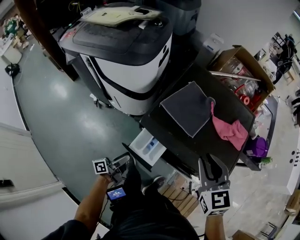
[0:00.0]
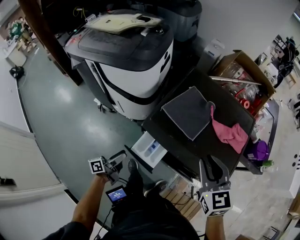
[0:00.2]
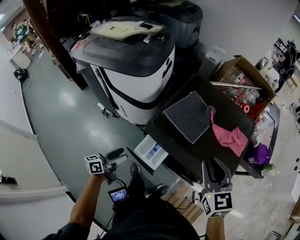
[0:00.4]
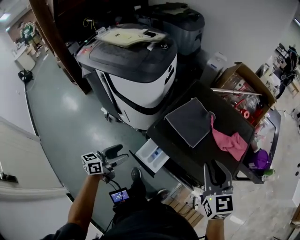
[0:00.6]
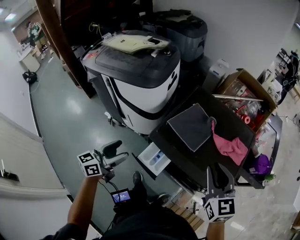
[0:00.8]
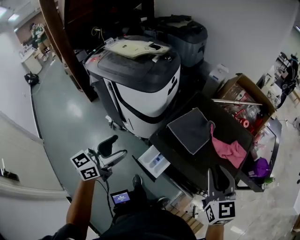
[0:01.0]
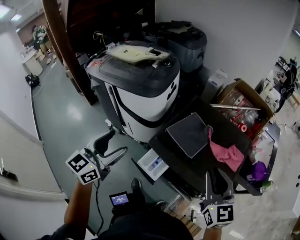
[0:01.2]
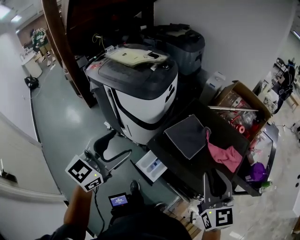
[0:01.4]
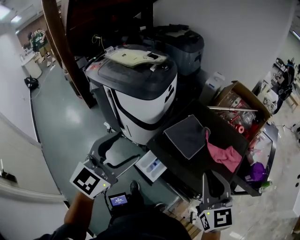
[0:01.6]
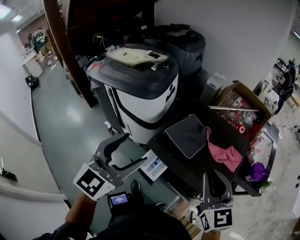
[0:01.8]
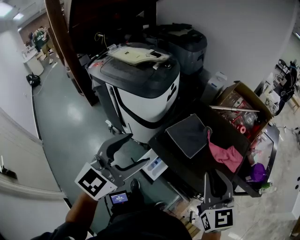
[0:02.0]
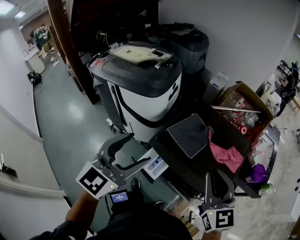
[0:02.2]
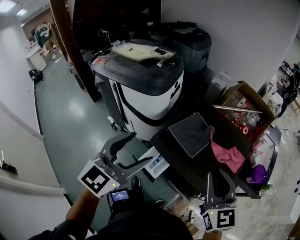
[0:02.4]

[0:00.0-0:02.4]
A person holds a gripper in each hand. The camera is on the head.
0:00.0 to 0:01.2: The left gripper goes roughly 40 cm upward, and rolls clockwise, seen from behind, by some 70 degrees; the right gripper is displaced upward by approximately 10 cm.
0:01.2 to 0:02.4: The left gripper moves to the right and upward, some 10 cm.

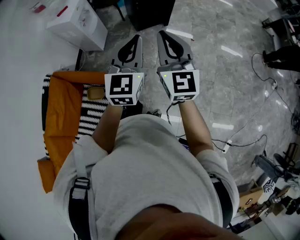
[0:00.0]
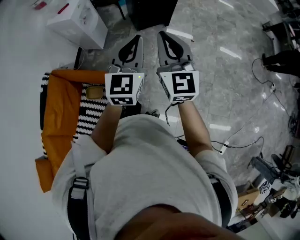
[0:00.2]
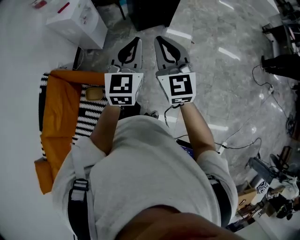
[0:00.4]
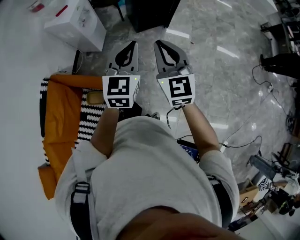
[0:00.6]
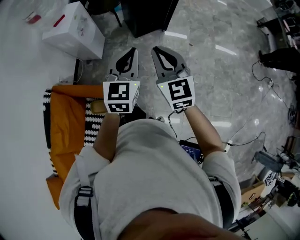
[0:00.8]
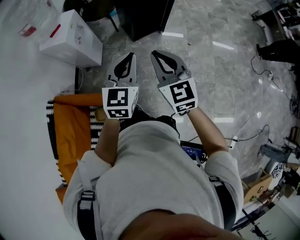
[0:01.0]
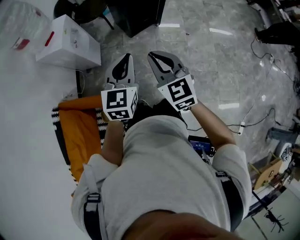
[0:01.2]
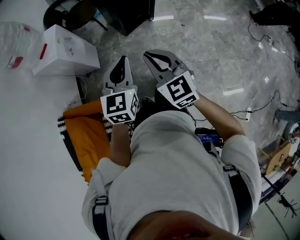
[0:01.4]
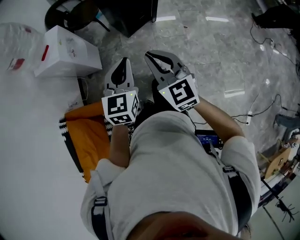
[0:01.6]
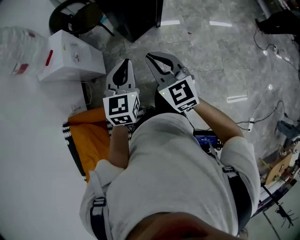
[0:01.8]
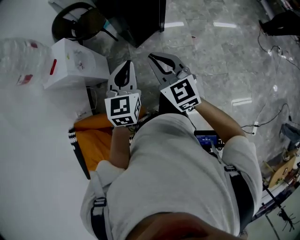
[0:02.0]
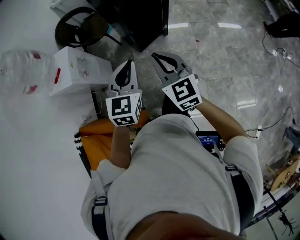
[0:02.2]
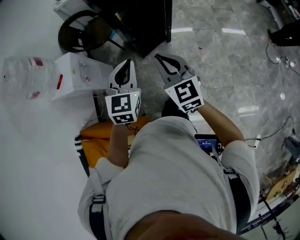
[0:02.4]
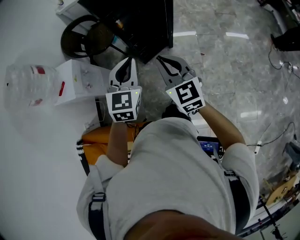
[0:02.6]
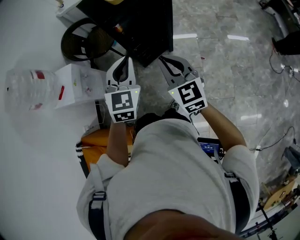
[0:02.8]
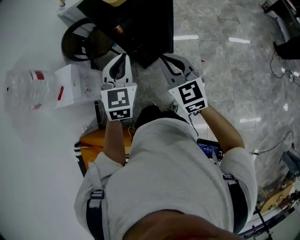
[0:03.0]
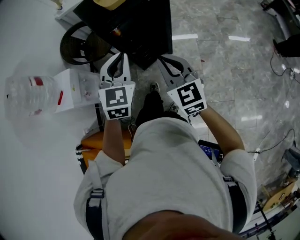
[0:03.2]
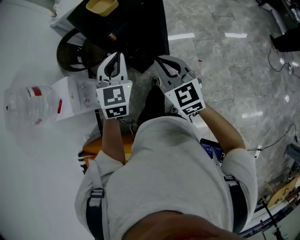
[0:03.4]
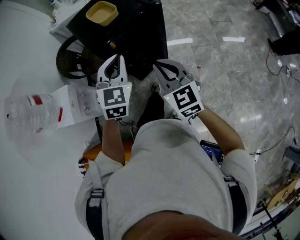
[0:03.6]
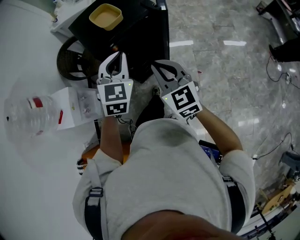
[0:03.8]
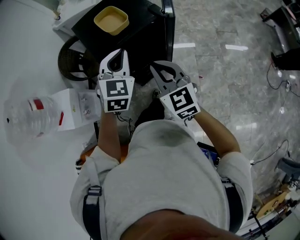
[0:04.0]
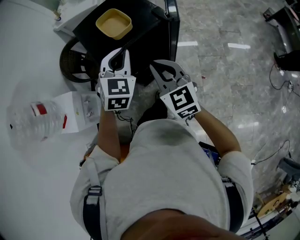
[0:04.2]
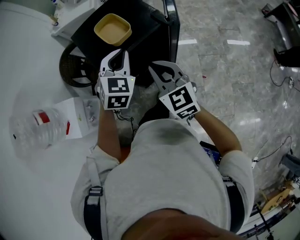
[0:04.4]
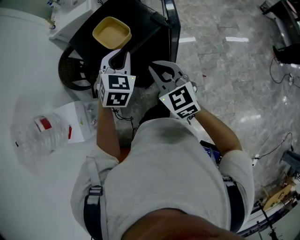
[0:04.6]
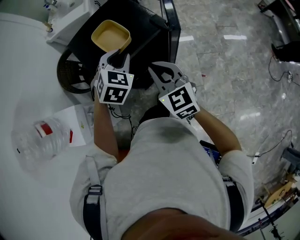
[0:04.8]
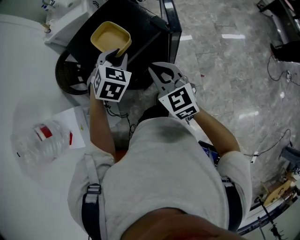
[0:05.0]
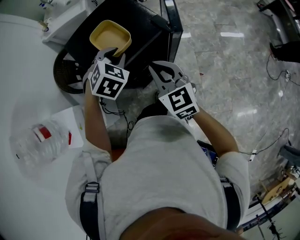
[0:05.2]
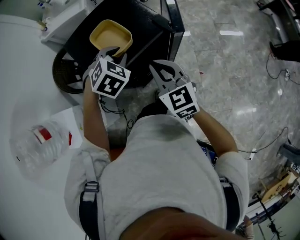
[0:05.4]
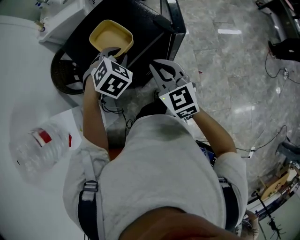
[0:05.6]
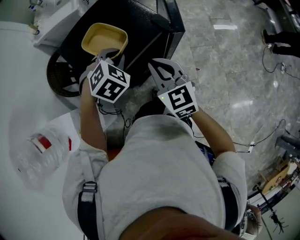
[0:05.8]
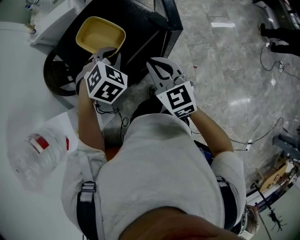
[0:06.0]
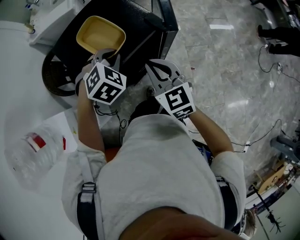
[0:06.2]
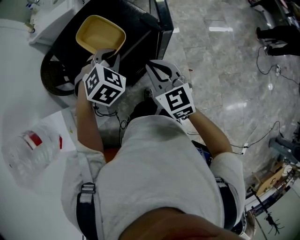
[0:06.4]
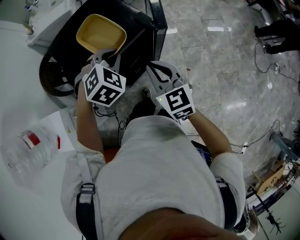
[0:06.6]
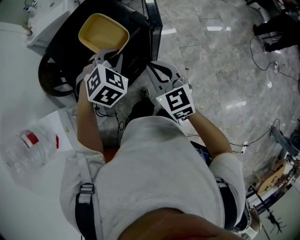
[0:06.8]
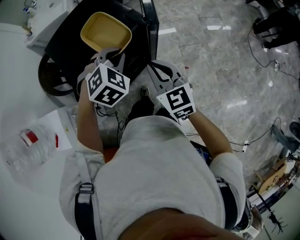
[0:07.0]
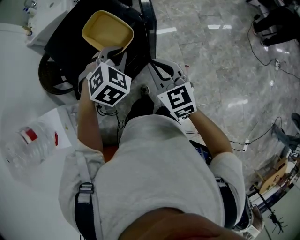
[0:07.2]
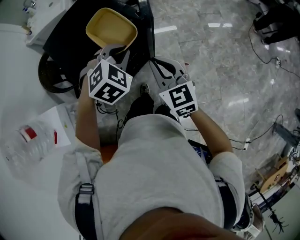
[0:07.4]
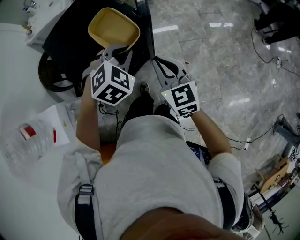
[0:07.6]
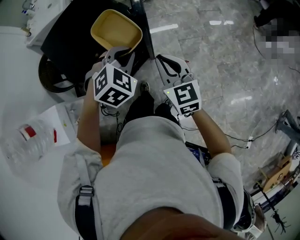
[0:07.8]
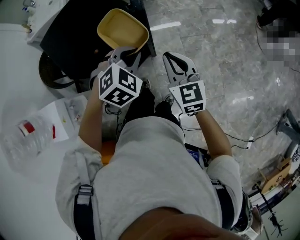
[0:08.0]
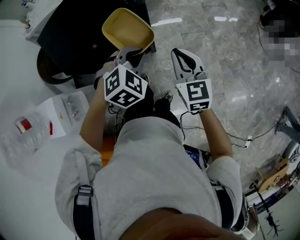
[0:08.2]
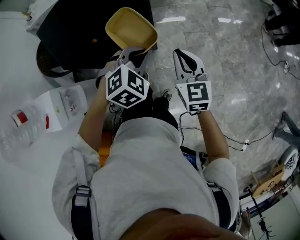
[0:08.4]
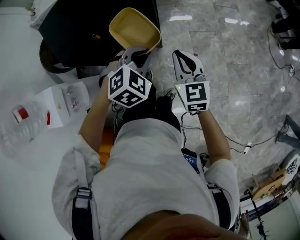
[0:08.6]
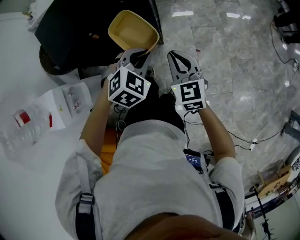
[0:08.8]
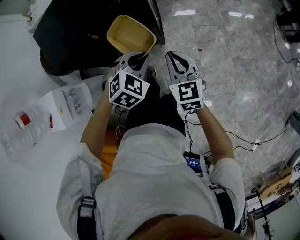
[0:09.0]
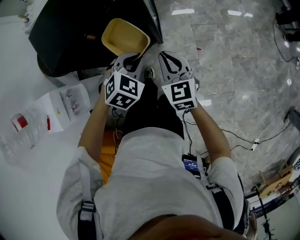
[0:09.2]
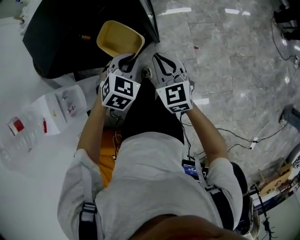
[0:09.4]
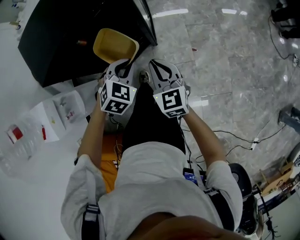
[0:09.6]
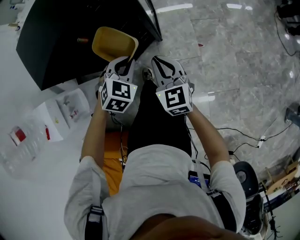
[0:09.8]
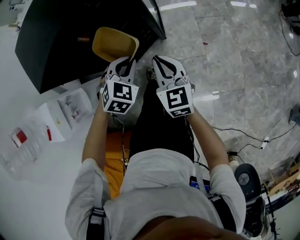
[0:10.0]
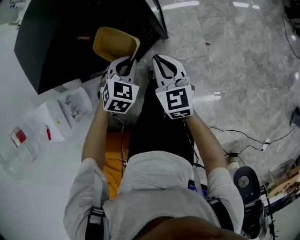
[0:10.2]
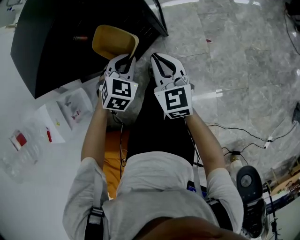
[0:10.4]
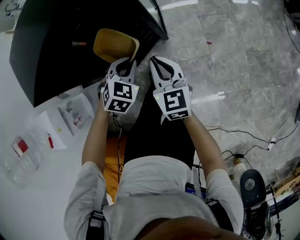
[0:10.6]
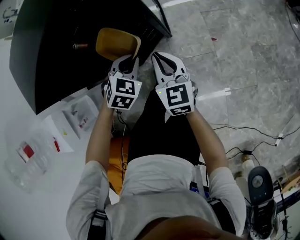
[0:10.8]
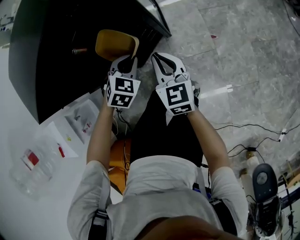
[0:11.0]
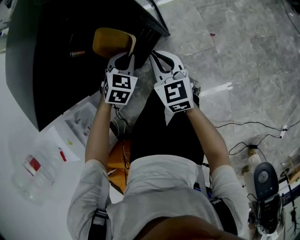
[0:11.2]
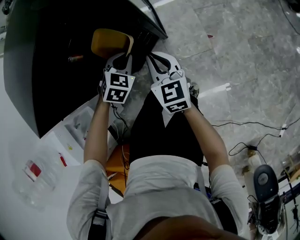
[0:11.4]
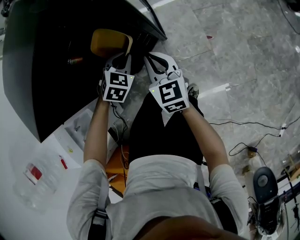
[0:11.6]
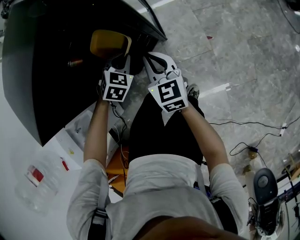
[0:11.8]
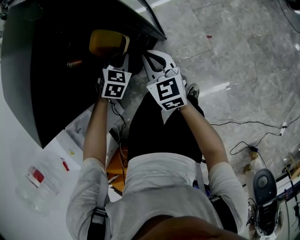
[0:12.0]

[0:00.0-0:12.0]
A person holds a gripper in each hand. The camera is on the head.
0:00.0 to 0:01.6: The two grippers go about 20 cm forward, to the left and downward.
0:01.6 to 0:03.0: Both grippers move forward and to the right, about 35 cm. The left gripper turns by some 20 degrees.
0:03.0 to 0:04.4: Both grippers move forward, some 25 cm.
0:04.4 to 0:06.0: The right gripper moves forward, approximately 10 cm; the left gripper travels forward and downward by some 10 cm, and rotates approximately 30 degrees.
0:06.0 to 0:07.6: Both grippers travel together to the right and backward, approximately 15 cm.
0:07.6 to 0:09.0: The two grippers go approximately 15 cm downward and to the right.
0:09.0 to 0:10.4: The grippers both shift downward by roughly 15 cm.
0:10.4 to 0:12.0: The left gripper moves downward and forward, roughly 15 cm, while the right gripper shifts approximately 10 cm forward and downward.

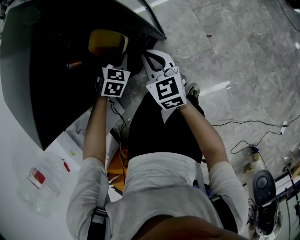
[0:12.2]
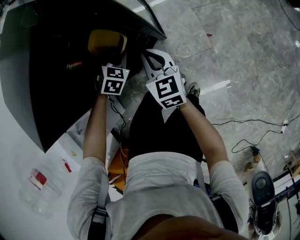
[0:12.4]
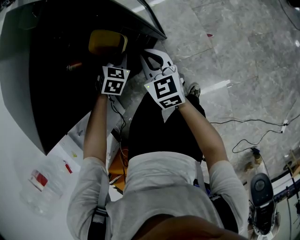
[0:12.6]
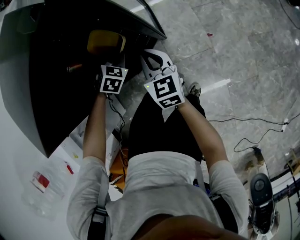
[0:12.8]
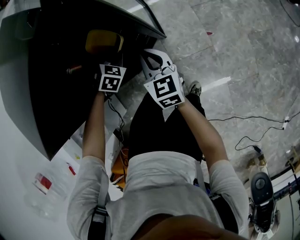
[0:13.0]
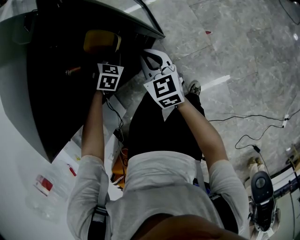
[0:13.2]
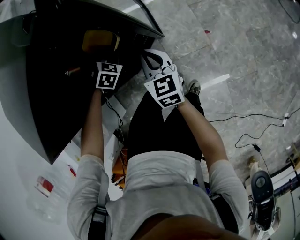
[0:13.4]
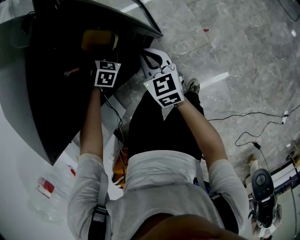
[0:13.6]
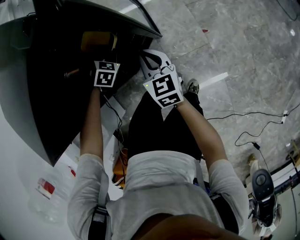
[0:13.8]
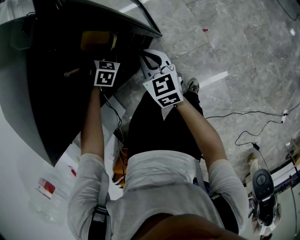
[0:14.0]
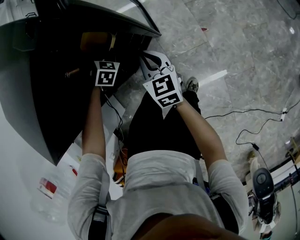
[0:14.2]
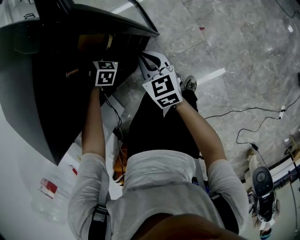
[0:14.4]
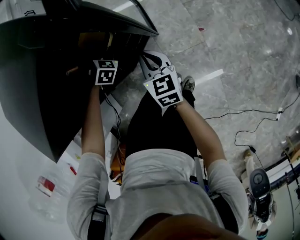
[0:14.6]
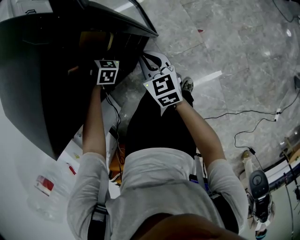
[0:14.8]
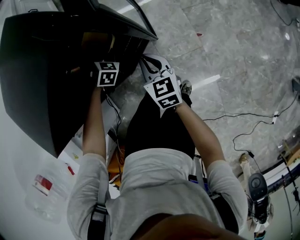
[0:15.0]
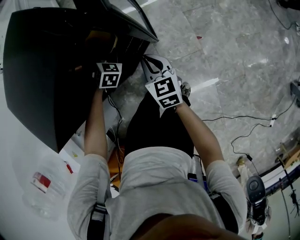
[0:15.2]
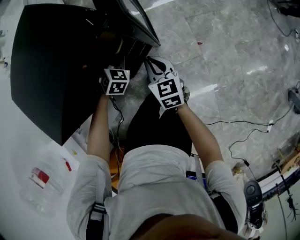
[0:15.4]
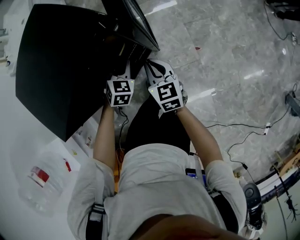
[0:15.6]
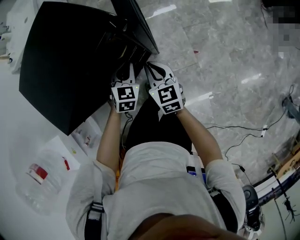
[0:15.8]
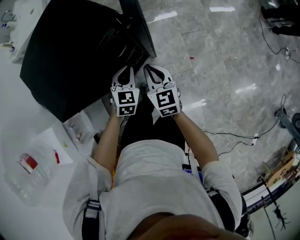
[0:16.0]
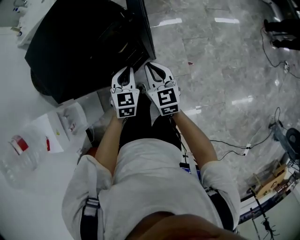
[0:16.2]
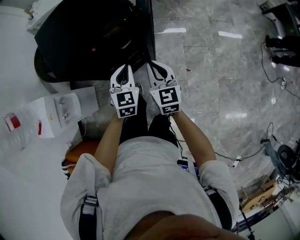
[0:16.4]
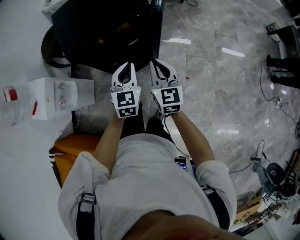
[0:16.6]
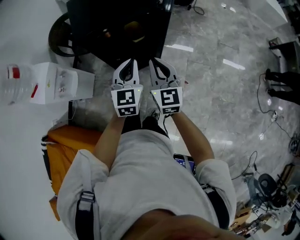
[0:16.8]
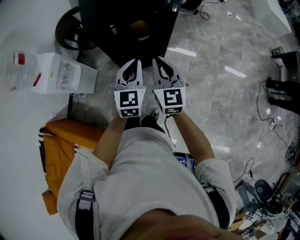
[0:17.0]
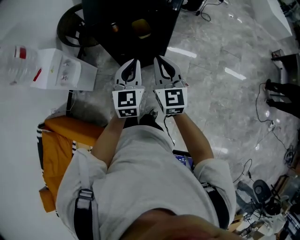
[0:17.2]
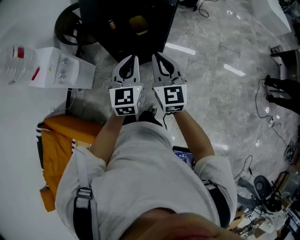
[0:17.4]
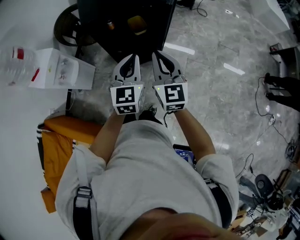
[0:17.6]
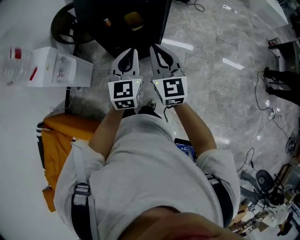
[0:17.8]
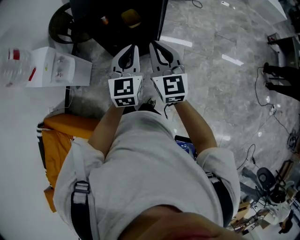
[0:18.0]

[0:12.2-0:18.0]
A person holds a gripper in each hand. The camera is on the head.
0:12.2 to 0:13.6: The left gripper shifts about 10 cm forward and downward.
0:13.6 to 0:15.0: The grippers stay close to where they were, moving slightly.
0:15.0 to 0:16.6: The right gripper goes some 25 cm upward, and rotates approximately 30 degrees. The left gripper moves upward and backward, roughly 40 cm, points its fingers about 40 degrees further upward, and closes up.
0:16.6 to 0:18.0: Both grippers move backward and upward, roughly 15 cm.

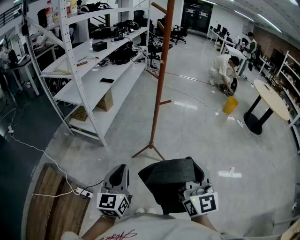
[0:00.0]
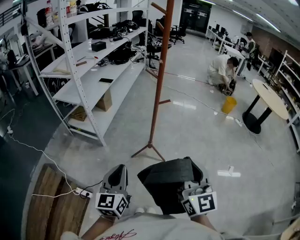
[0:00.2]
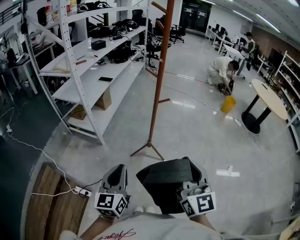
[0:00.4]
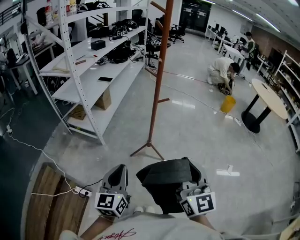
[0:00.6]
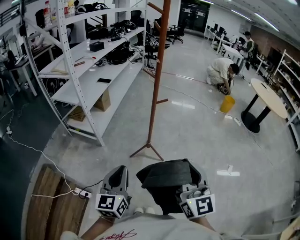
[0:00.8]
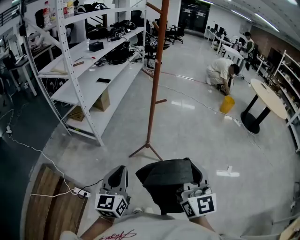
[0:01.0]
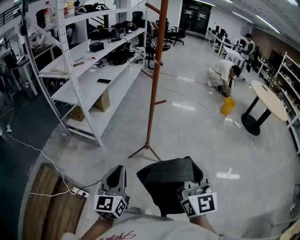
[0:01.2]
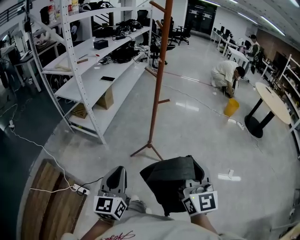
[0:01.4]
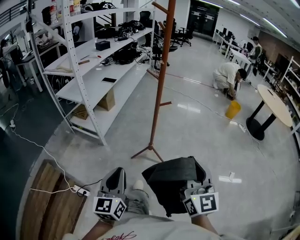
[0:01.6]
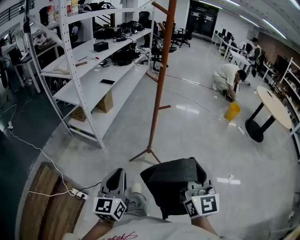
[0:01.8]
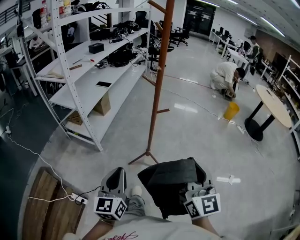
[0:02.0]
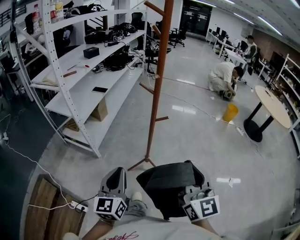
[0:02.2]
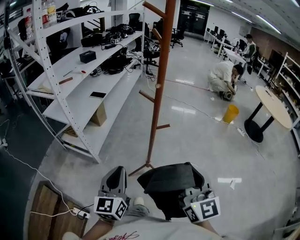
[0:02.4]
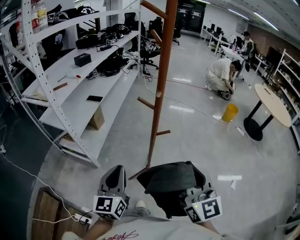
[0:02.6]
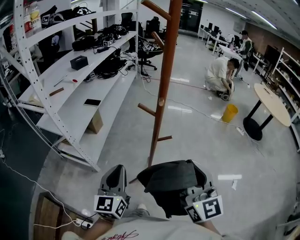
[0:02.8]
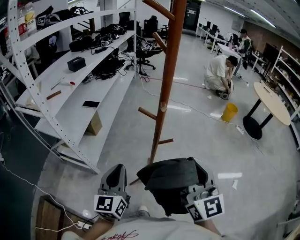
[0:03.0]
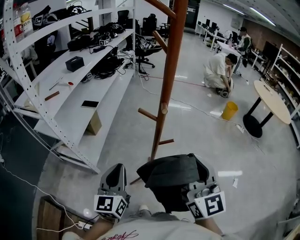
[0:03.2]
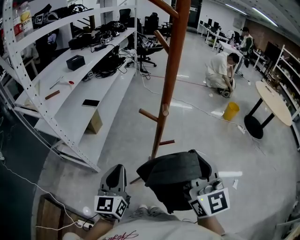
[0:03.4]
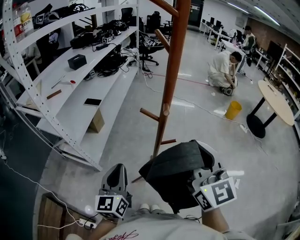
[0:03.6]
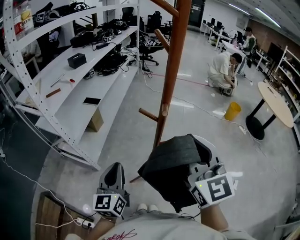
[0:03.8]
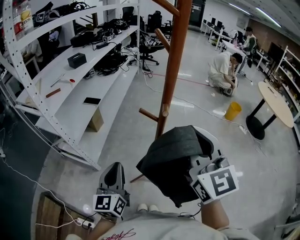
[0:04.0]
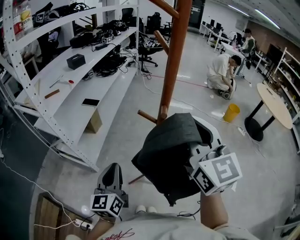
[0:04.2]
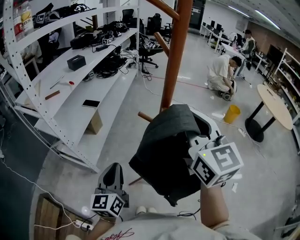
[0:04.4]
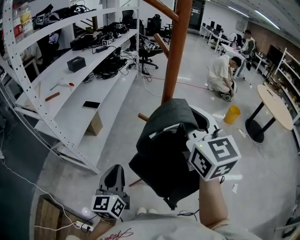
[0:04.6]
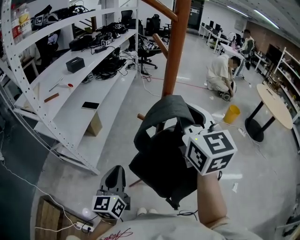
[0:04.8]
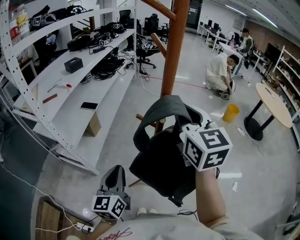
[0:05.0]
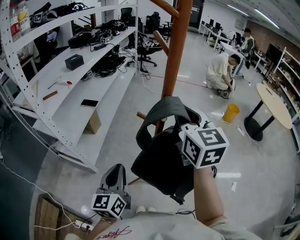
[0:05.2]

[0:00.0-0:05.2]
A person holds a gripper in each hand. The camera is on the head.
0:00.0 to 0:01.8: The right gripper ends up approximately 5 cm from where it was.
0:01.8 to 0:03.4: Both grippers travel together forward, about 30 cm.
0:03.4 to 0:05.2: The right gripper shifts approximately 15 cm forward.
